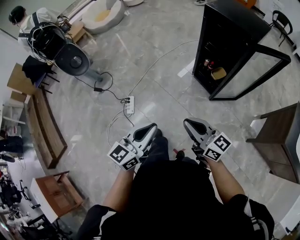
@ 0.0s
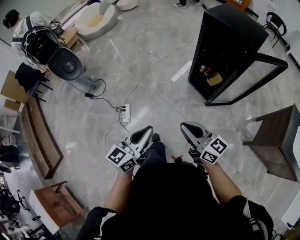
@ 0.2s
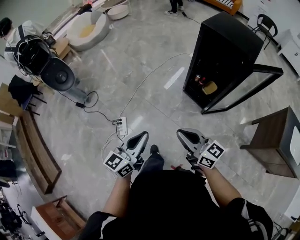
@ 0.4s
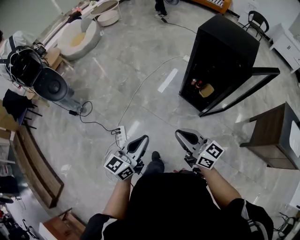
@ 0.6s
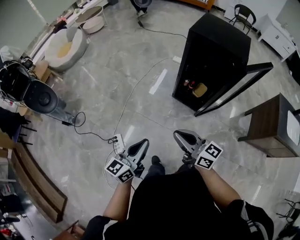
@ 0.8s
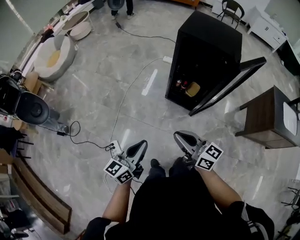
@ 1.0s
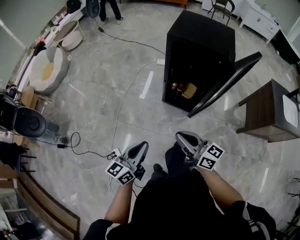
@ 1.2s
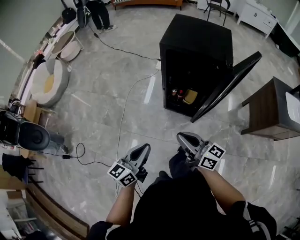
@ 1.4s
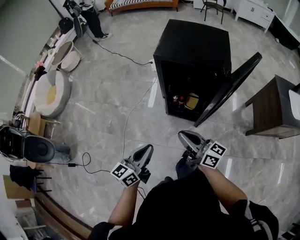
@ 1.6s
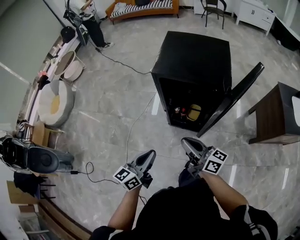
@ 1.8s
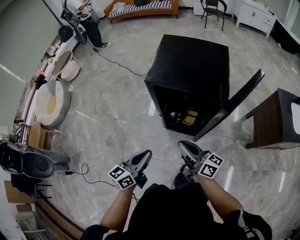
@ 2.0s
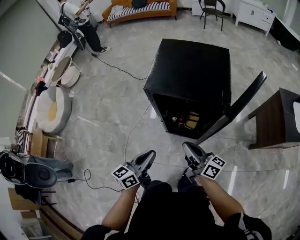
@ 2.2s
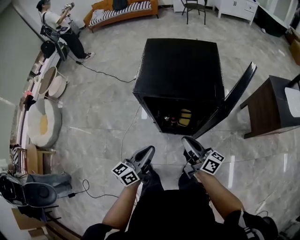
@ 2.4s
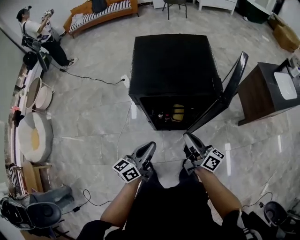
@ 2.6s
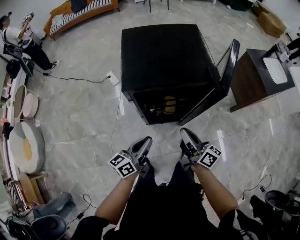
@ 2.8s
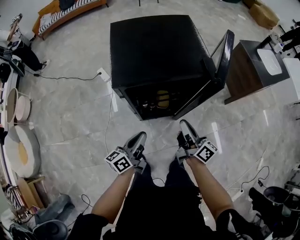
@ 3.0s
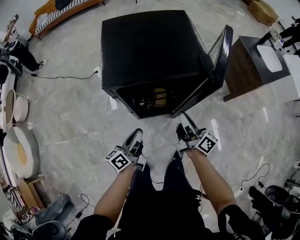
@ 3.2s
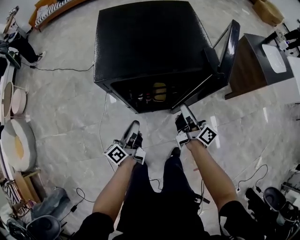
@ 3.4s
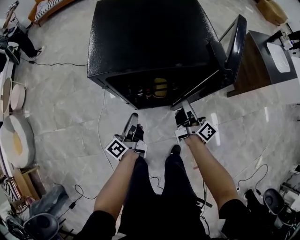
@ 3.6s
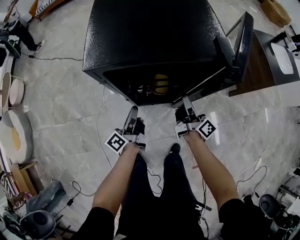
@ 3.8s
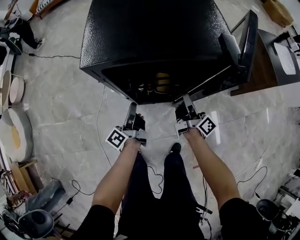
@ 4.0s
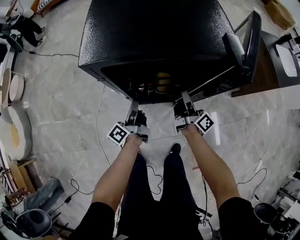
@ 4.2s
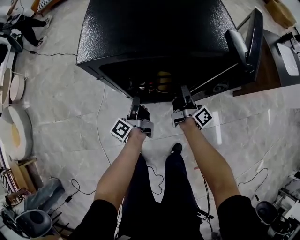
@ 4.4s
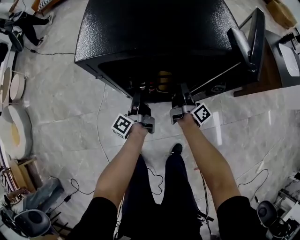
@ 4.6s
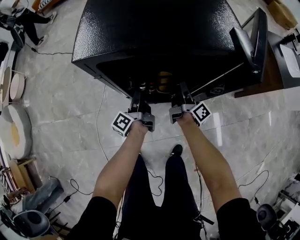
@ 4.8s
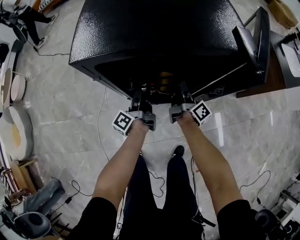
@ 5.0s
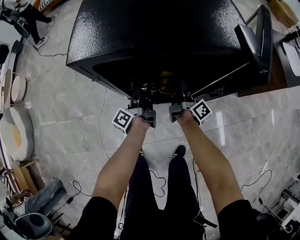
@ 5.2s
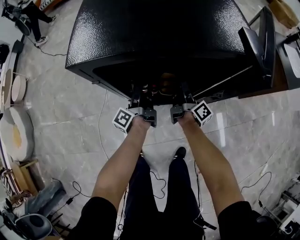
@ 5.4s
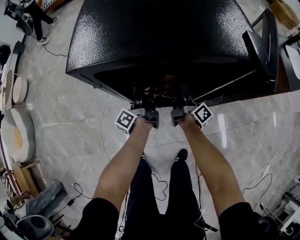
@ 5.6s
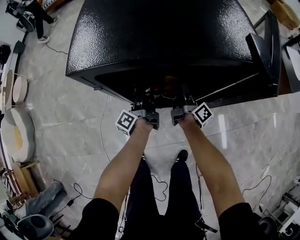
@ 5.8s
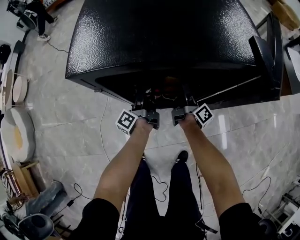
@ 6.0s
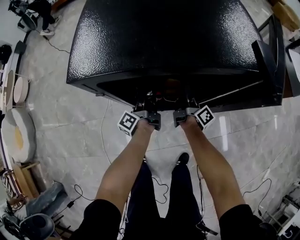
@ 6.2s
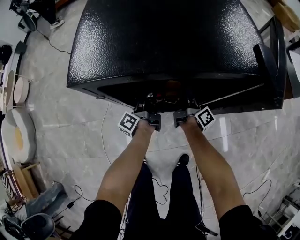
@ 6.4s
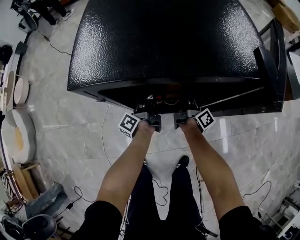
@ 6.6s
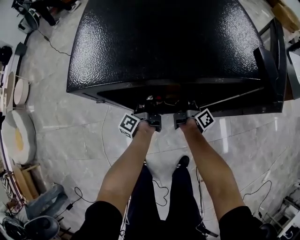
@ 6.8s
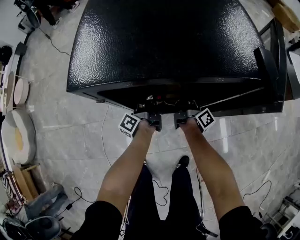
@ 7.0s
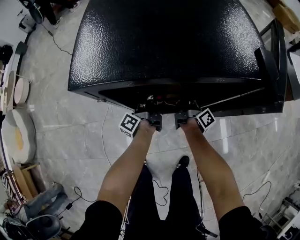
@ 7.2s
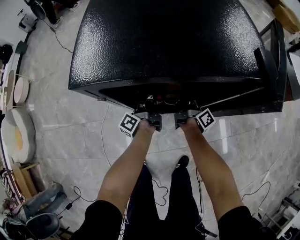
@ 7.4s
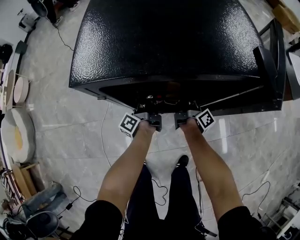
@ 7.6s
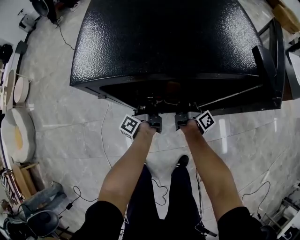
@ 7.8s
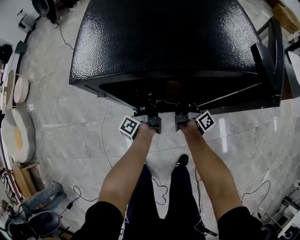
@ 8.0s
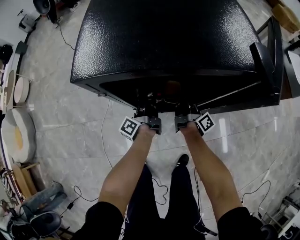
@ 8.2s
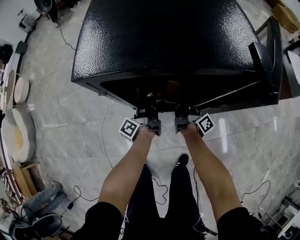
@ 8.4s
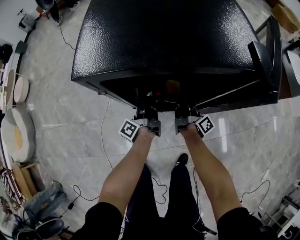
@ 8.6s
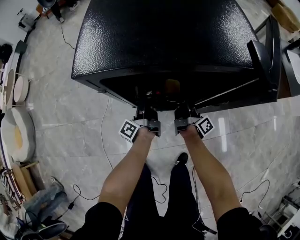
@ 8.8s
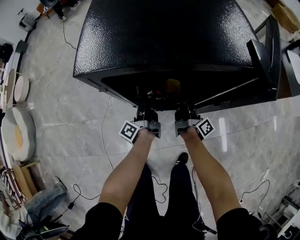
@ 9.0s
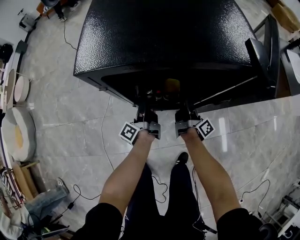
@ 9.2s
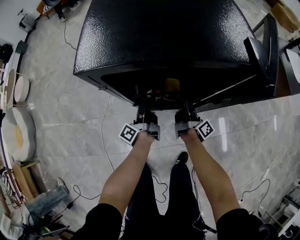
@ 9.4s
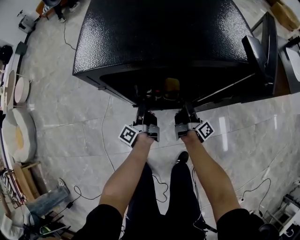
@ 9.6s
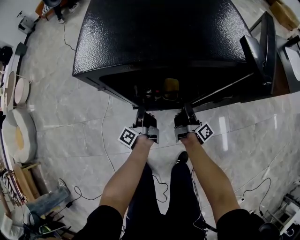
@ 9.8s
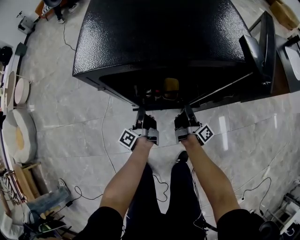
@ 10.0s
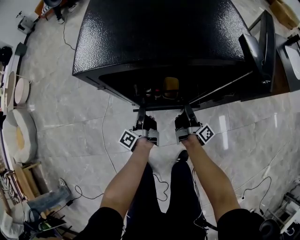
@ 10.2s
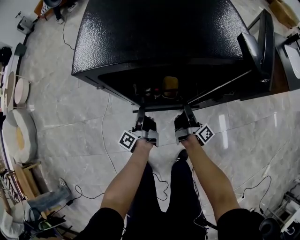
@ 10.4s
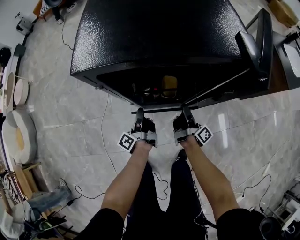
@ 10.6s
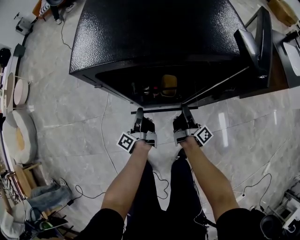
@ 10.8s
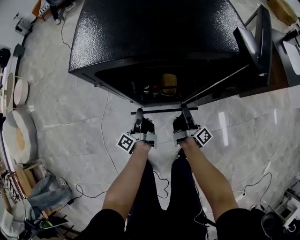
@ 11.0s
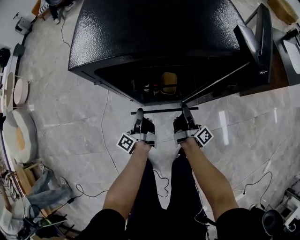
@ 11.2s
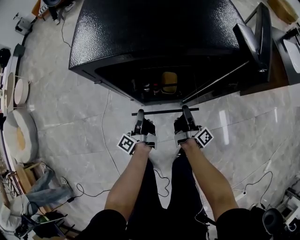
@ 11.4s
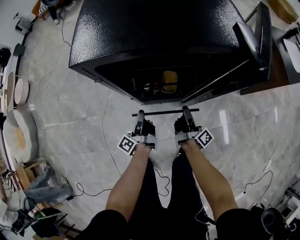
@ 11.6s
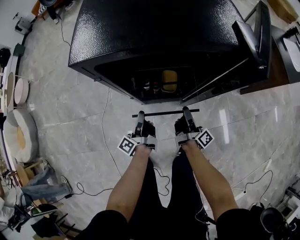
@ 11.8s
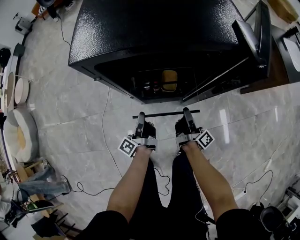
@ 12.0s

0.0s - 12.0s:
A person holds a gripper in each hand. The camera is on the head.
0.0s - 1.6s: The left gripper changes place by some 35 cm, and changes its angle by approximately 30 degrees. Meanwhile the right gripper shifts by roughly 35 cm, and changes its angle by approximately 30 degrees.
1.6s - 3.0s: The left gripper ends up approximately 25 cm from where it was, and turns by some 30 degrees. Meanwhile the right gripper moves some 20 cm, and rotates roughly 50 degrees.
3.0s - 4.4s: The grippers both shift downward and forward by roughly 20 cm. The left gripper changes its angle by approximately 40 degrees.
4.4s - 6.0s: The left gripper is displaced forward and downward by approximately 10 cm. The right gripper is displaced downward and forward by approximately 10 cm.
6.0s - 7.6s: The left gripper closes its fingers.
7.6s - 9.0s: The grippers both shift backward by roughly 5 cm.
9.0s - 10.4s: The grippers both shift backward by some 5 cm.
10.4s - 12.0s: Both grippers travel together backward, some 5 cm.

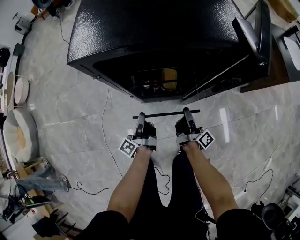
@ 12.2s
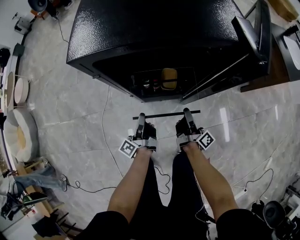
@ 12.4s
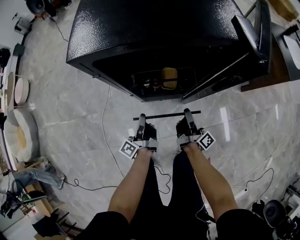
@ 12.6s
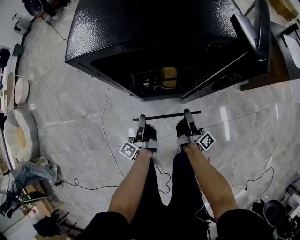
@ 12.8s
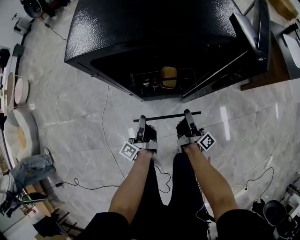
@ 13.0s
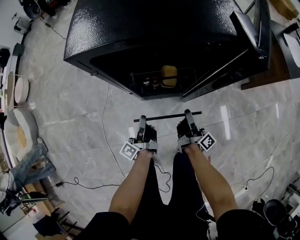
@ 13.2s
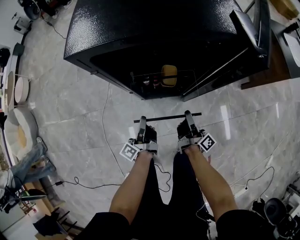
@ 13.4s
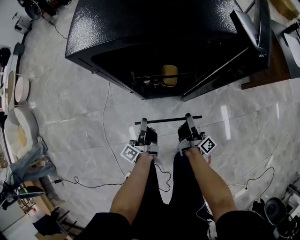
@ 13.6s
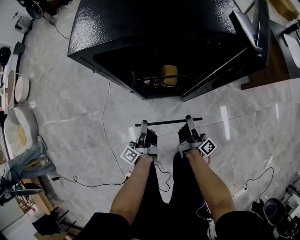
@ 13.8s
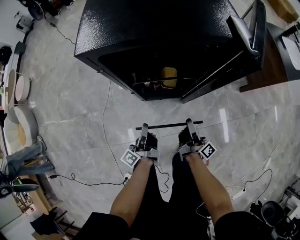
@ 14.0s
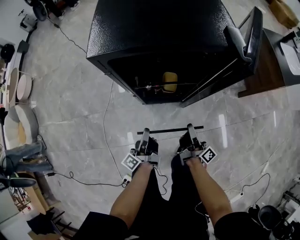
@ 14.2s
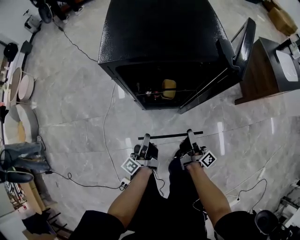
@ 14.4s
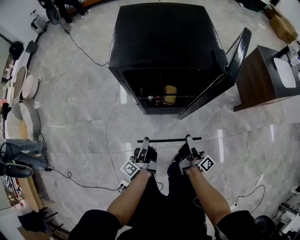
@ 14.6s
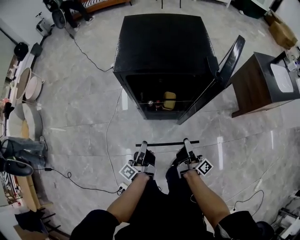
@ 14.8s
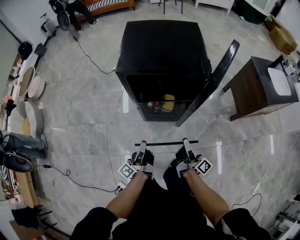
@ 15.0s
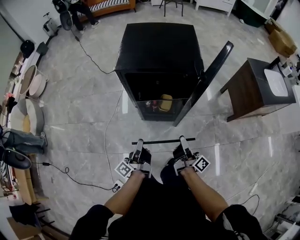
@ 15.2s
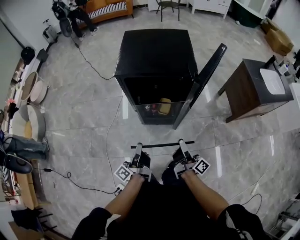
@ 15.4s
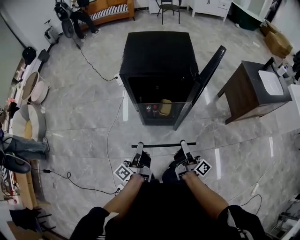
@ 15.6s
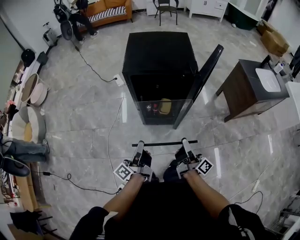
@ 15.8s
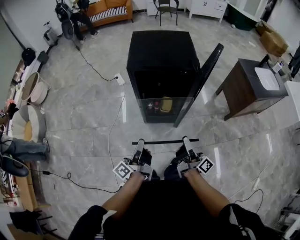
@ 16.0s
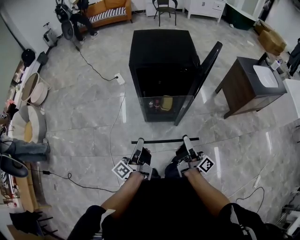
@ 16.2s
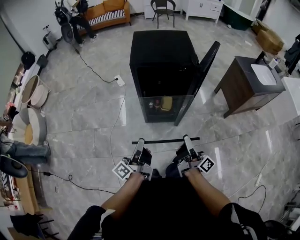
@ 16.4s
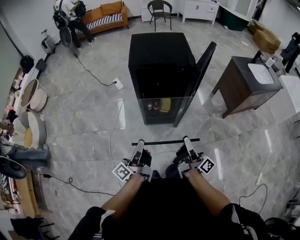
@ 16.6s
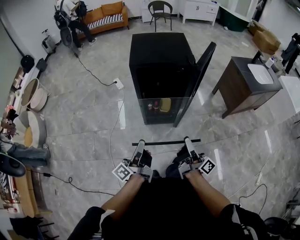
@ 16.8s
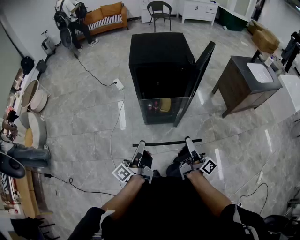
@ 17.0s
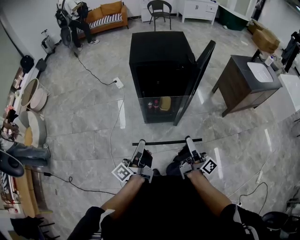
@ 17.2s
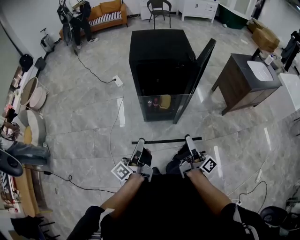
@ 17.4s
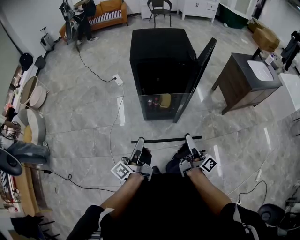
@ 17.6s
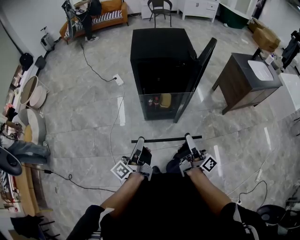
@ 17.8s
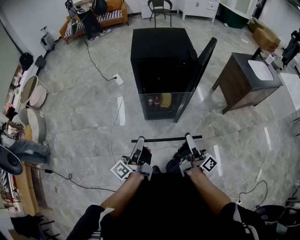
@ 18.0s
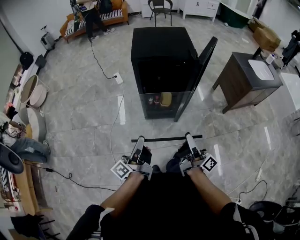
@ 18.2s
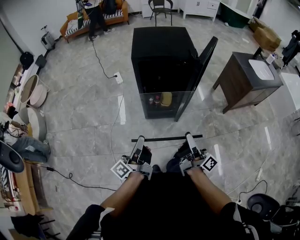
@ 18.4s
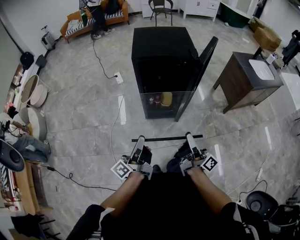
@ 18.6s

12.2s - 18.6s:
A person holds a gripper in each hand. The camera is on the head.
12.2s - 13.8s: The two grippers go some 5 cm backward.
13.8s - 15.4s: Both grippers travel together upward and backward, about 25 cm.
15.4s - 17.0s: Both grippers travel together backward and upward, approximately 15 cm.
17.0s - 18.6s: The grippers move only a little.

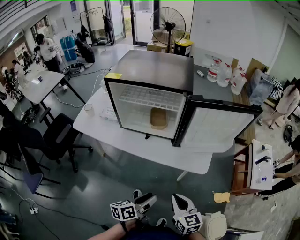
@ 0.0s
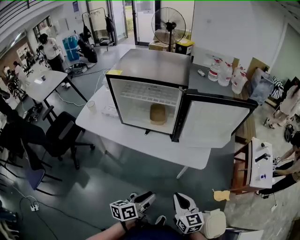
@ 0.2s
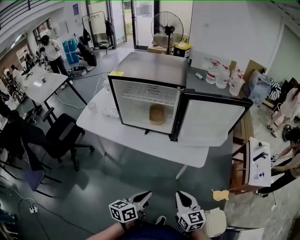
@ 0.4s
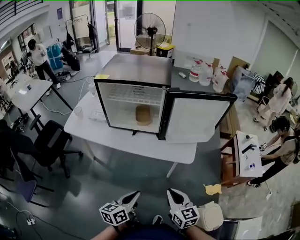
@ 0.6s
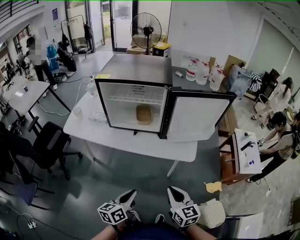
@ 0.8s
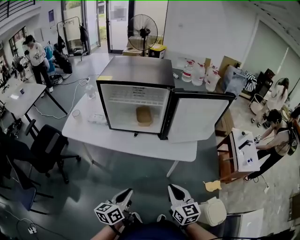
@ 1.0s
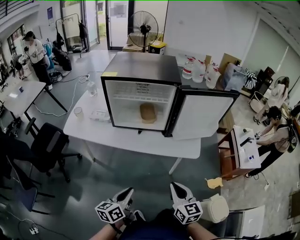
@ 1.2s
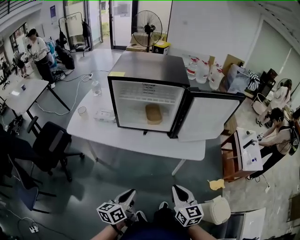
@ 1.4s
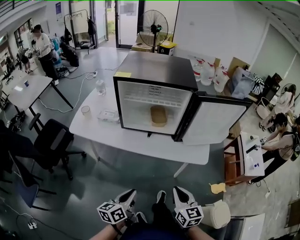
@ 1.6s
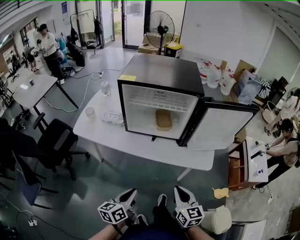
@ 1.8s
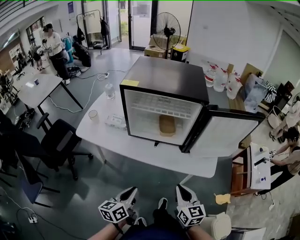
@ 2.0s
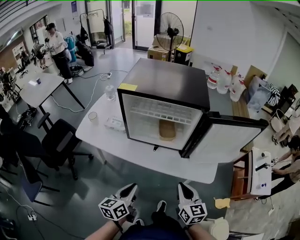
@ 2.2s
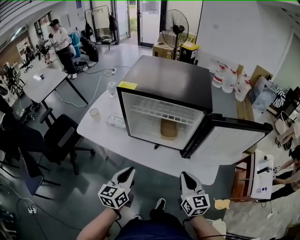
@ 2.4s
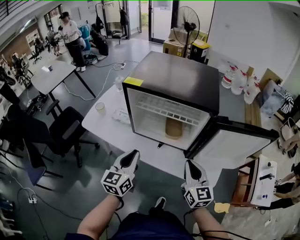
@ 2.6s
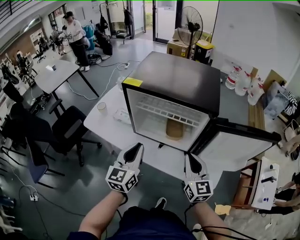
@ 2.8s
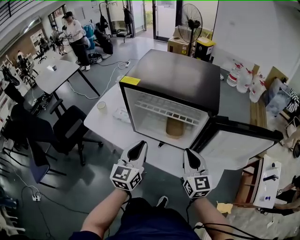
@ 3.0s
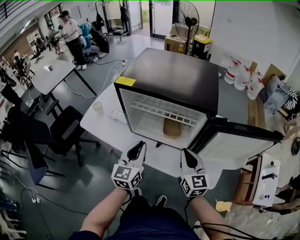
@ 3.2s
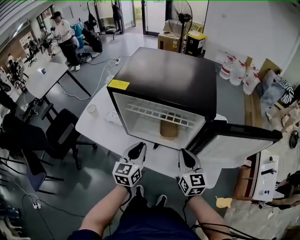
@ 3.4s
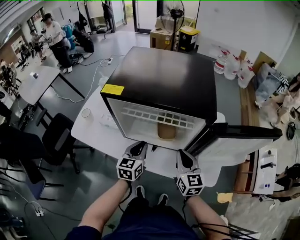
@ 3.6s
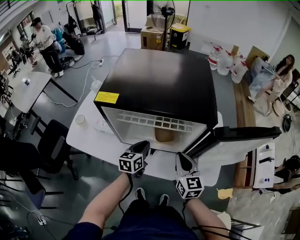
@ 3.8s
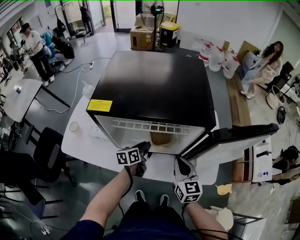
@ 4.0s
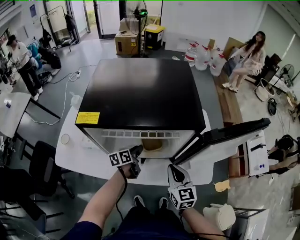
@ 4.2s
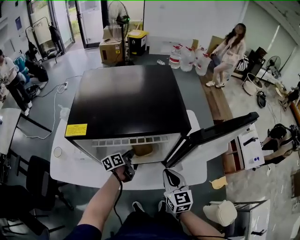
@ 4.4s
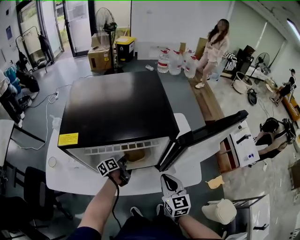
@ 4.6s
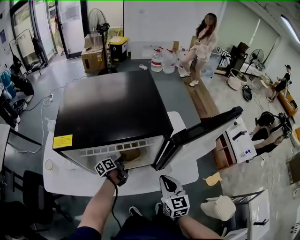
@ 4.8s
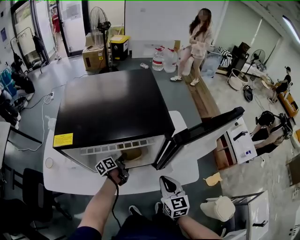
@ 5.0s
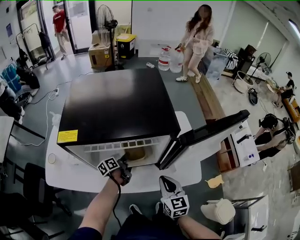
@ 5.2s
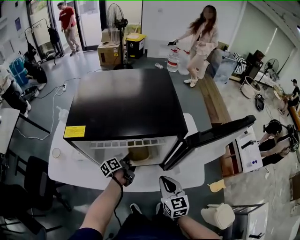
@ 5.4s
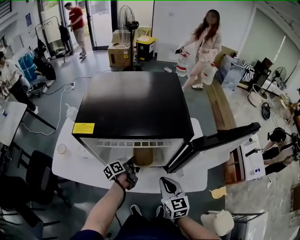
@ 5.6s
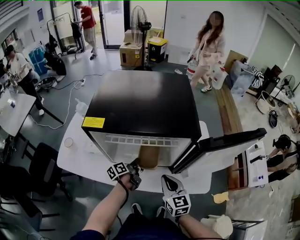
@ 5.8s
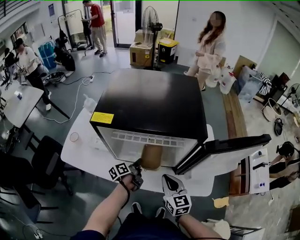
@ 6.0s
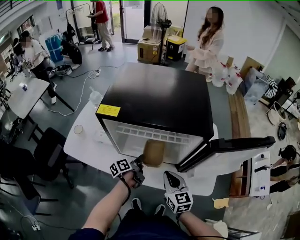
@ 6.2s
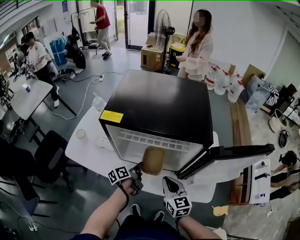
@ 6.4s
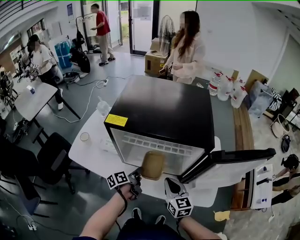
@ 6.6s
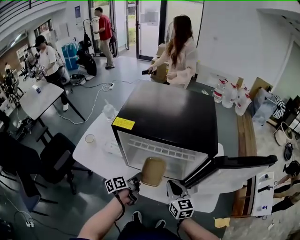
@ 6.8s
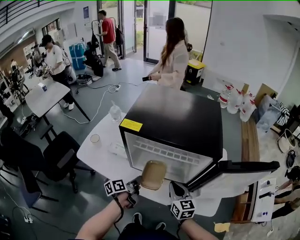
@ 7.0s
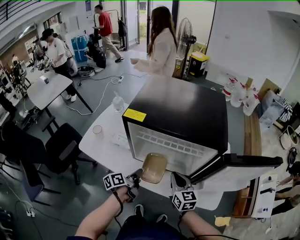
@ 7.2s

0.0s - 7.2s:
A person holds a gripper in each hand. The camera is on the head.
0.0s - 1.4s: The left gripper heads to the left, covering about 15 cm, and closes. Meanwhile the right gripper goes approximately 5 cm to the left.
1.4s - 2.8s: The right gripper goes roughly 30 cm forward. Meanwhile the left gripper travels forward and upward by approximately 30 cm, and rotates roughly 40 degrees.
2.8s - 4.4s: The left gripper heads downward, covering approximately 25 cm, swivels approximately 60 degrees, and opens up, while the right gripper shifts some 10 cm downward, and turns by some 20 degrees.
4.4s - 5.8s: The left gripper moves backward, roughly 5 cm.
5.8s - 7.2s: The right gripper shifts by some 5 cm. The left gripper shifts about 15 cm backward, to the left and upward.
